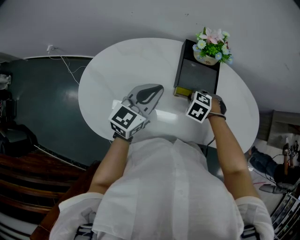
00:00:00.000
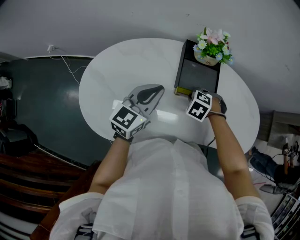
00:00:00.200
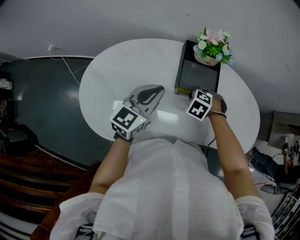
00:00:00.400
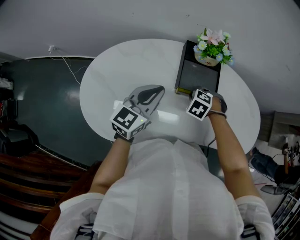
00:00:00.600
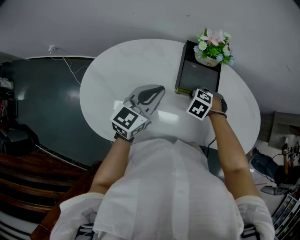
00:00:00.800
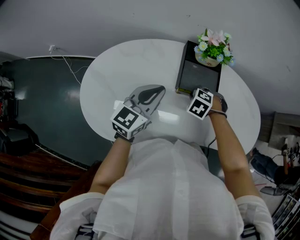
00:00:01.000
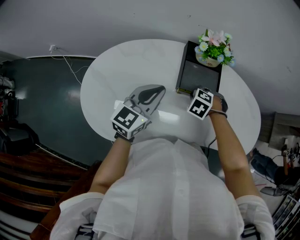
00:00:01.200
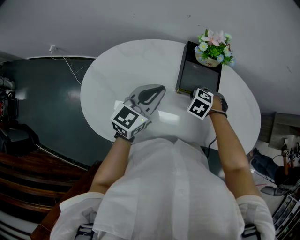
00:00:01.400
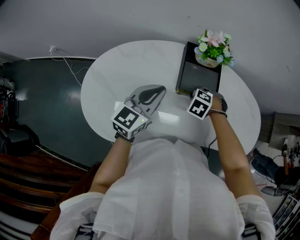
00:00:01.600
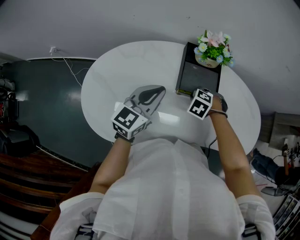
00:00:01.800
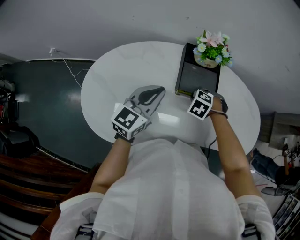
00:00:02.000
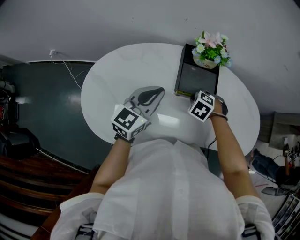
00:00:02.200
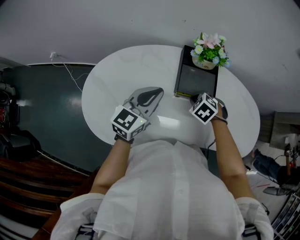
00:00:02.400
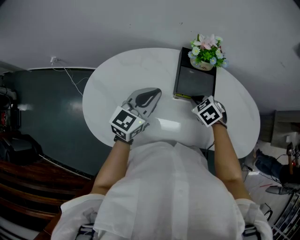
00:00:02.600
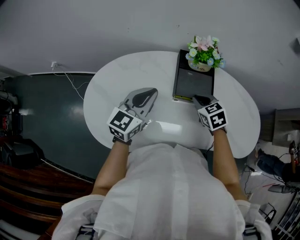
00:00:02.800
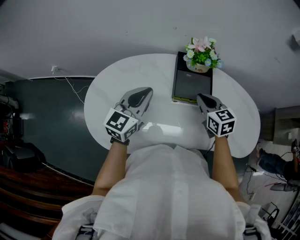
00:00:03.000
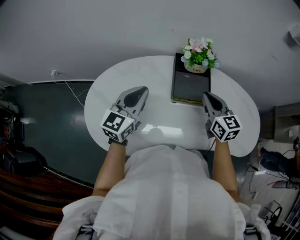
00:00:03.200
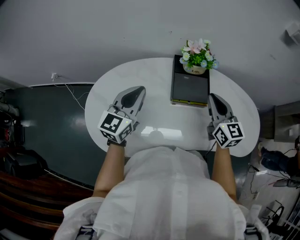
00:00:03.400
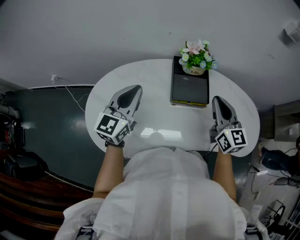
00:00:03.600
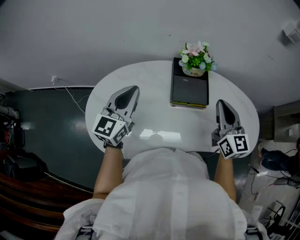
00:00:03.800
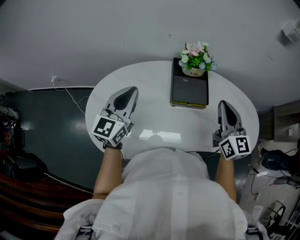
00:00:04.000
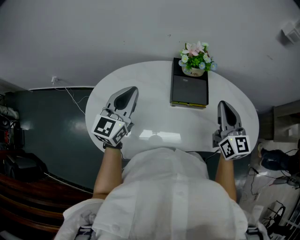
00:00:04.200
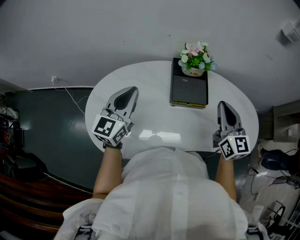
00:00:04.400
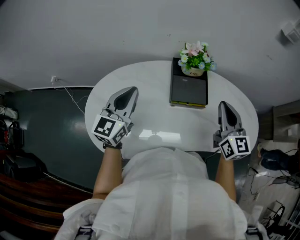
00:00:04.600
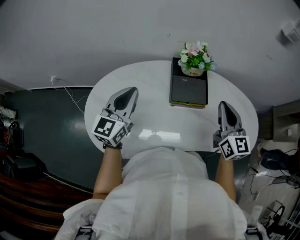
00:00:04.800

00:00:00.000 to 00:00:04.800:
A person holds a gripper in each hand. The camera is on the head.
00:00:00.000 to 00:00:01.600: The grippers stay close to where they were, moving slightly.
00:00:01.600 to 00:00:03.200: The left gripper shifts by about 5 cm, while the right gripper shifts roughly 15 cm upward, and points its fingers about 60 degrees further upward.
00:00:03.200 to 00:00:04.800: The right gripper heads upward and to the right, covering some 10 cm.

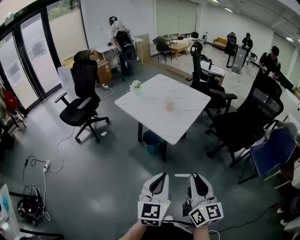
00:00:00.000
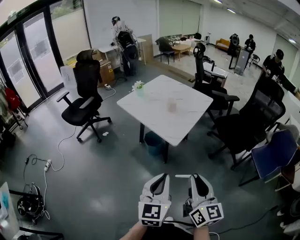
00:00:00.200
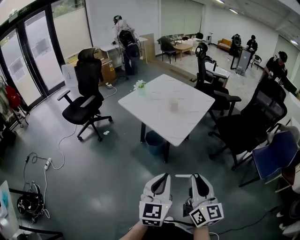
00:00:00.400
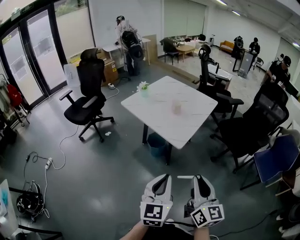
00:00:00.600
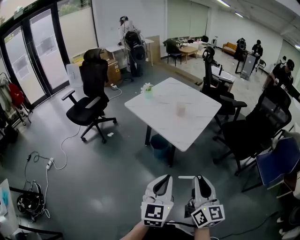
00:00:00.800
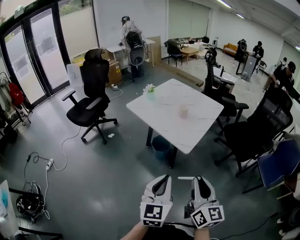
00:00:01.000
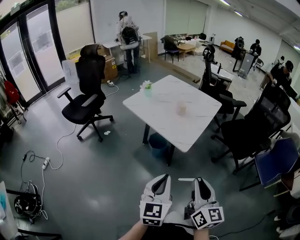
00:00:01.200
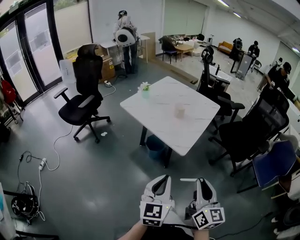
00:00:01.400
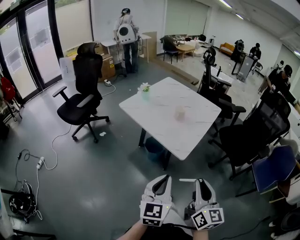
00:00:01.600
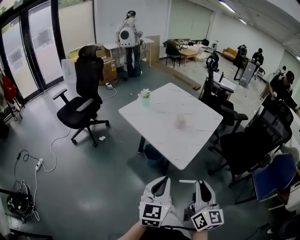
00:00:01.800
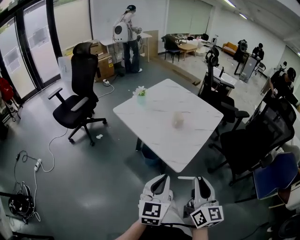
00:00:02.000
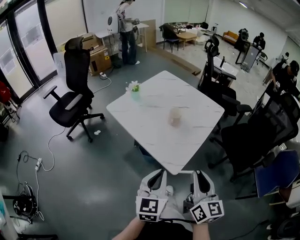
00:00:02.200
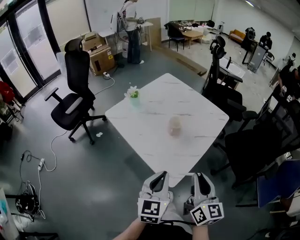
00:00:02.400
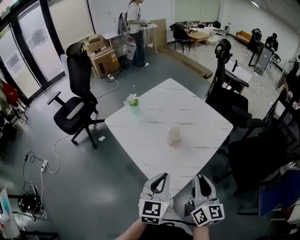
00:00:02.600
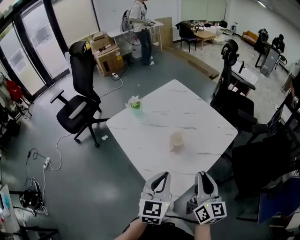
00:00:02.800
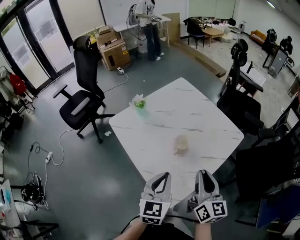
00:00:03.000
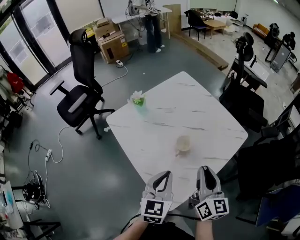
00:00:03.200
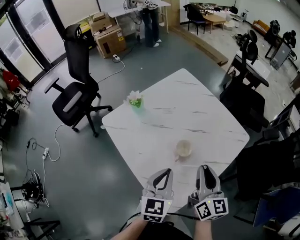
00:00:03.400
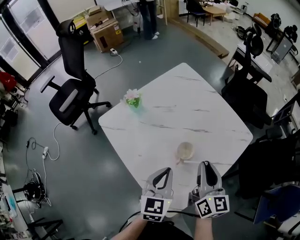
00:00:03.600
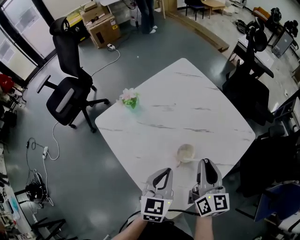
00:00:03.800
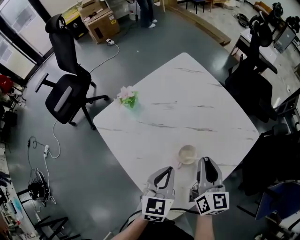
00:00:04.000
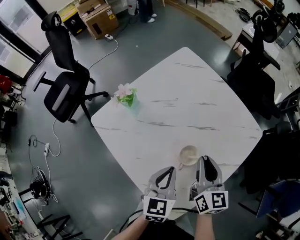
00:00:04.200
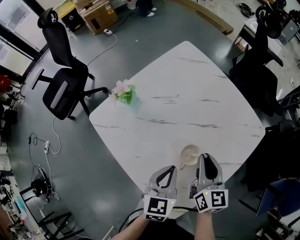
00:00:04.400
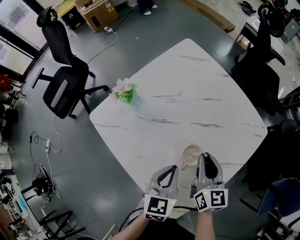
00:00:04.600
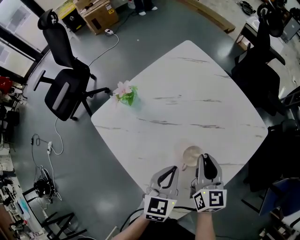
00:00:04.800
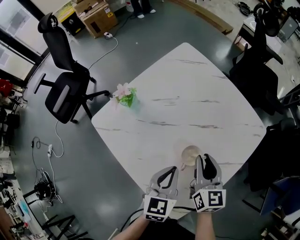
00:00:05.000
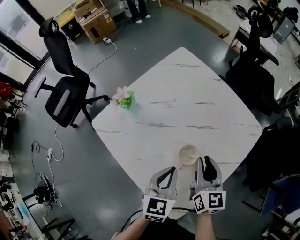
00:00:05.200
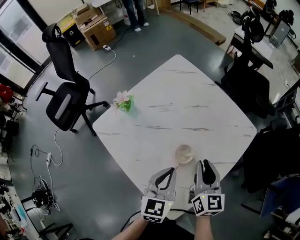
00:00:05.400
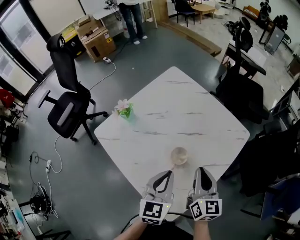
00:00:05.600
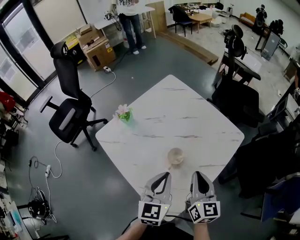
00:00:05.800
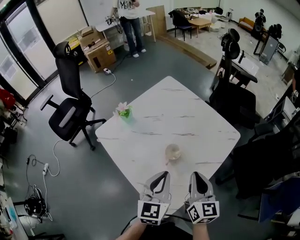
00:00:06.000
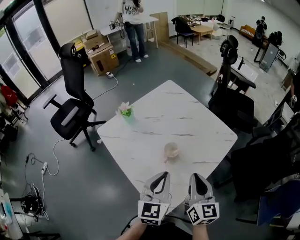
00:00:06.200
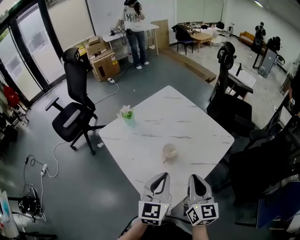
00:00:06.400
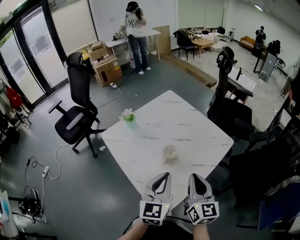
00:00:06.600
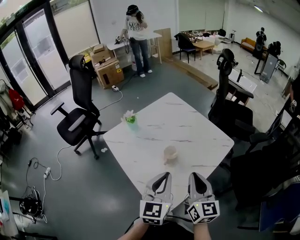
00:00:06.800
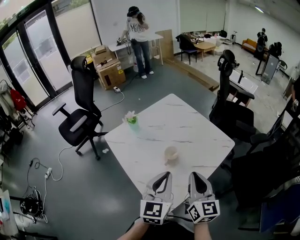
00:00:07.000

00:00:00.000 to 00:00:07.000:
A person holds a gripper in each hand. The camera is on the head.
00:00:00.000 to 00:00:01.400: The right gripper is displaced forward by some 10 cm. The left gripper moves forward and to the left, roughly 10 cm.
00:00:01.400 to 00:00:02.800: The two grippers go roughly 40 cm forward.
00:00:02.800 to 00:00:04.200: The grippers both shift forward and downward by about 25 cm.
00:00:04.200 to 00:00:05.600: The right gripper heads backward, covering some 5 cm. The left gripper travels upward by approximately 5 cm.
00:00:05.600 to 00:00:07.000: Both grippers move backward and upward, approximately 15 cm.

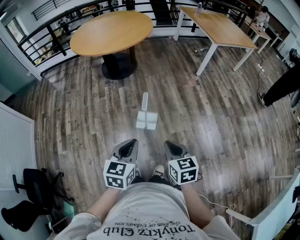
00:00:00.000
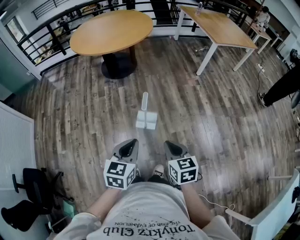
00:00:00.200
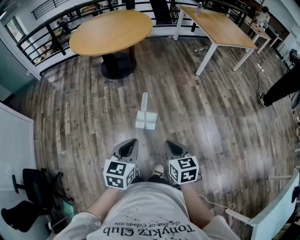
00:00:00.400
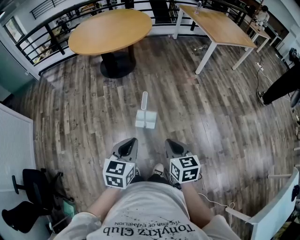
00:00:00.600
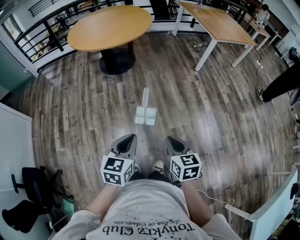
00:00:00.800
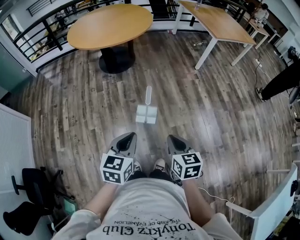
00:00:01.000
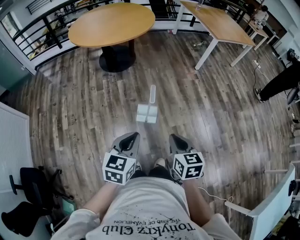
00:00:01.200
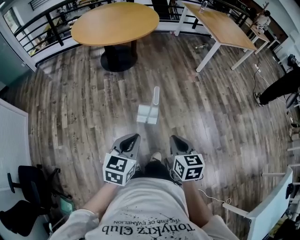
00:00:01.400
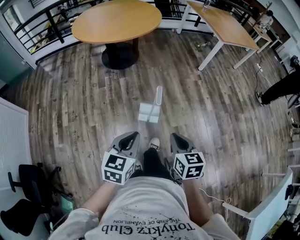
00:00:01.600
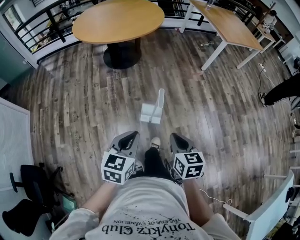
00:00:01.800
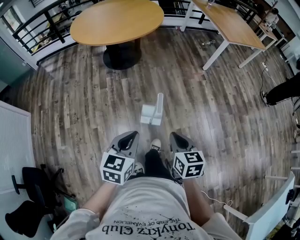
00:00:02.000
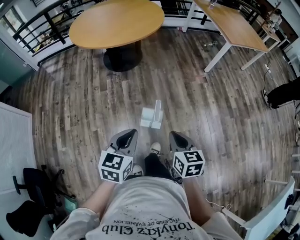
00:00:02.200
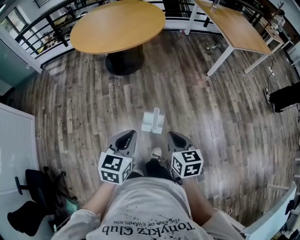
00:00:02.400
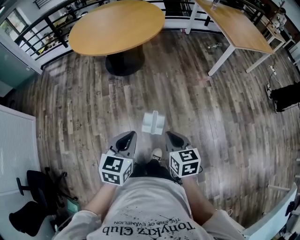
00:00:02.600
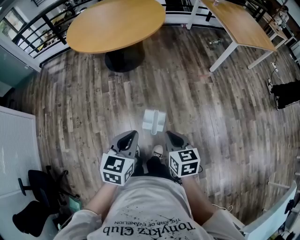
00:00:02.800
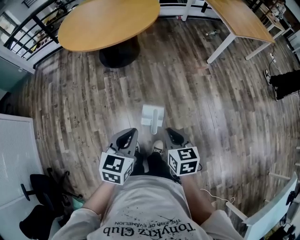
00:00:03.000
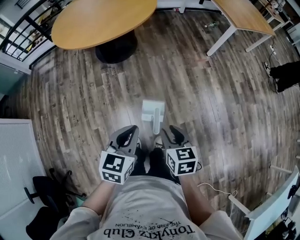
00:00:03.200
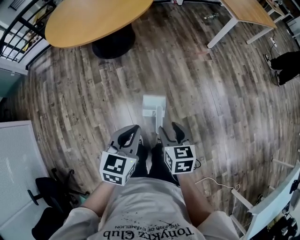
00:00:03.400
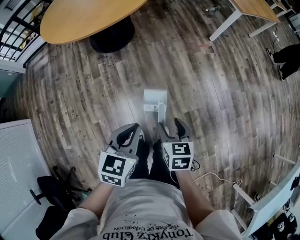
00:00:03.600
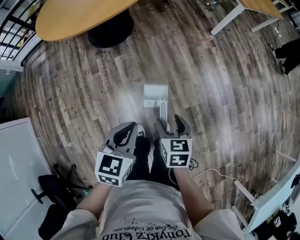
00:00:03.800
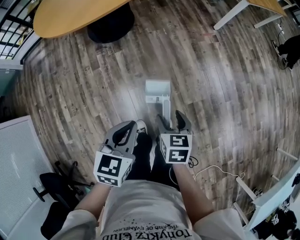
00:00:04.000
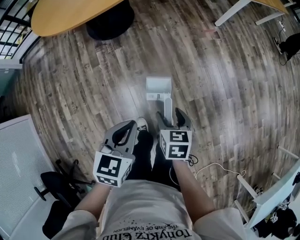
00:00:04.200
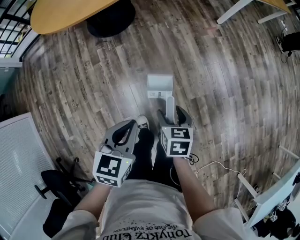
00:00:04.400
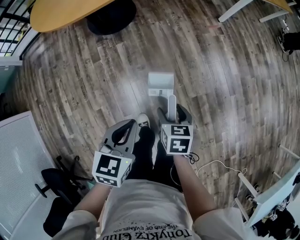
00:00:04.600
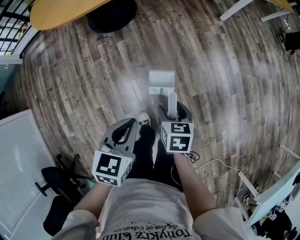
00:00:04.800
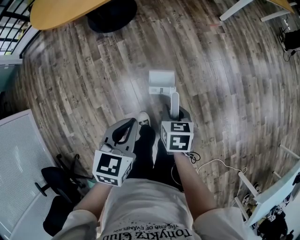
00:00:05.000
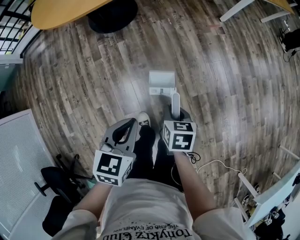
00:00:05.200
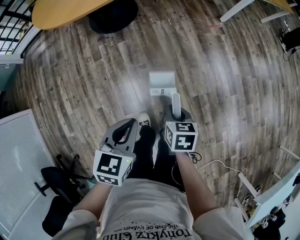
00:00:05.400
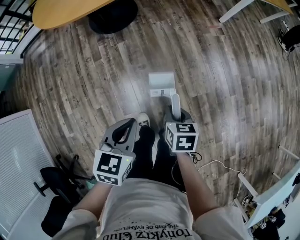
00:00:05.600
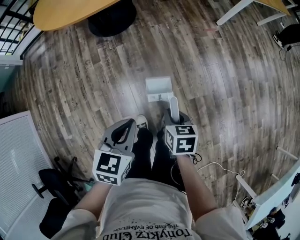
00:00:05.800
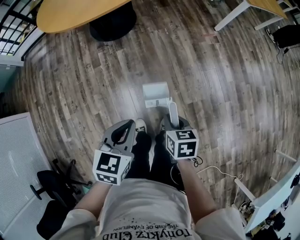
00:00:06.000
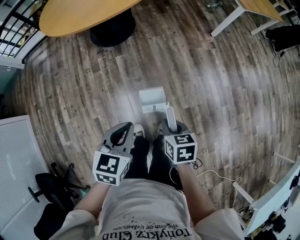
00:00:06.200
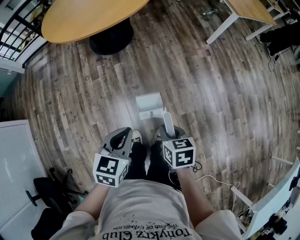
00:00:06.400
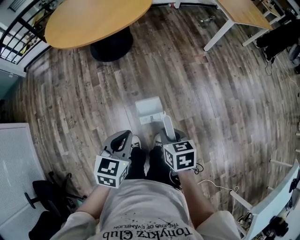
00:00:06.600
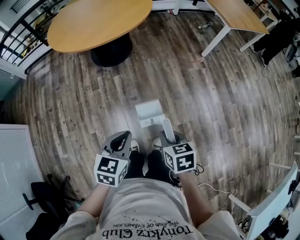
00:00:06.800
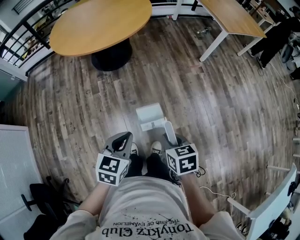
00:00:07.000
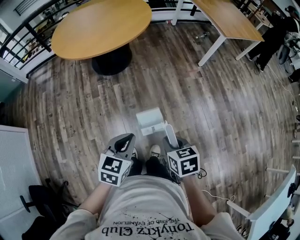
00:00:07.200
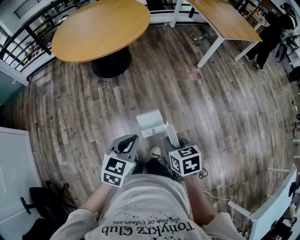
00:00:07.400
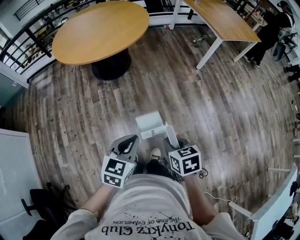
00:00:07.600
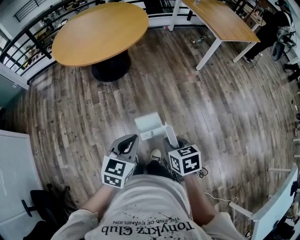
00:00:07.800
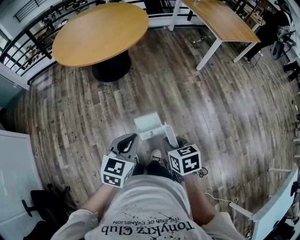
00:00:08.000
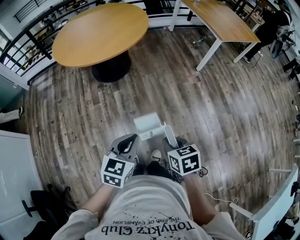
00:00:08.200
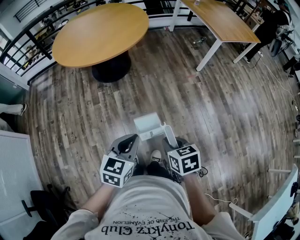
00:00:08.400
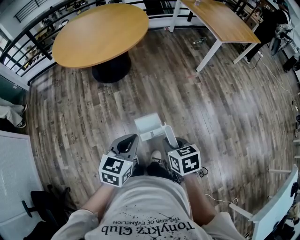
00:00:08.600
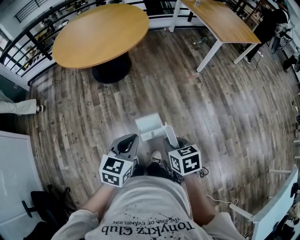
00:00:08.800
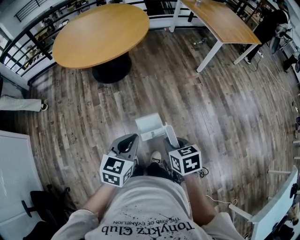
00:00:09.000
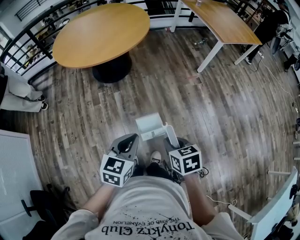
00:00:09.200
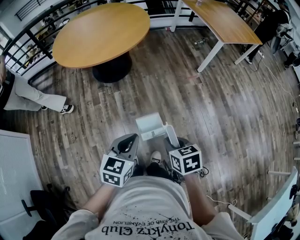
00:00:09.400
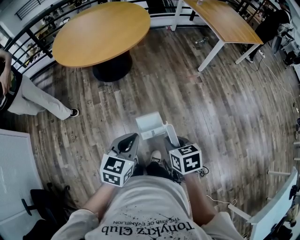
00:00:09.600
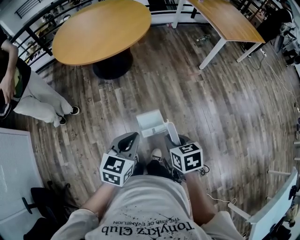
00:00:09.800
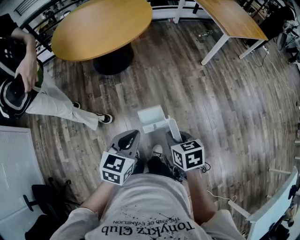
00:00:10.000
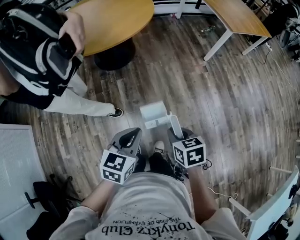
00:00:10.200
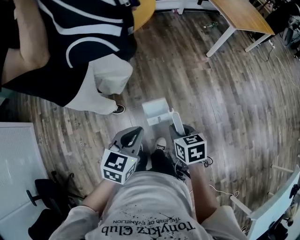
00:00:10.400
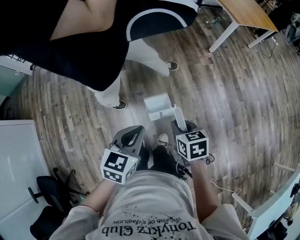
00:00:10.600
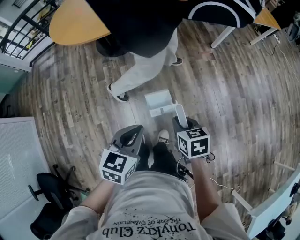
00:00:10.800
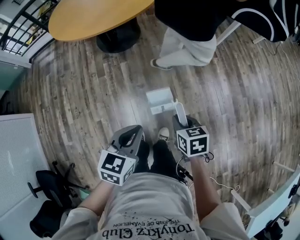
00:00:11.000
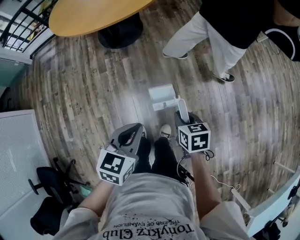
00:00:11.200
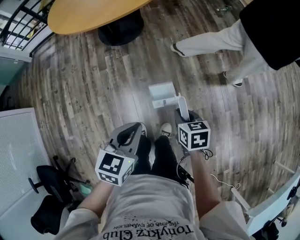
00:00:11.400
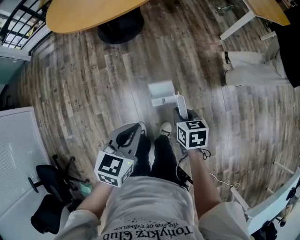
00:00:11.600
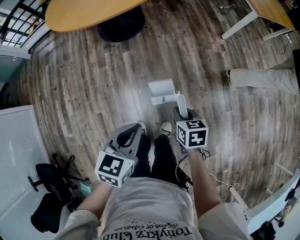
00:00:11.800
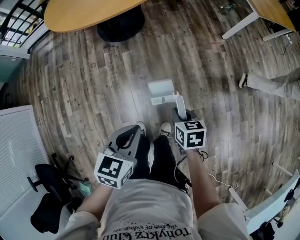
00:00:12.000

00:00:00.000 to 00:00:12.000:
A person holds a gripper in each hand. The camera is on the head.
00:00:00.000 to 00:00:01.600: The grippers both shift to the left by about 10 cm.
00:00:01.600 to 00:00:03.000: Both grippers move forward, approximately 20 cm.
00:00:03.000 to 00:00:04.400: The left gripper moves downward, about 10 cm. The right gripper moves downward, about 15 cm, and opens up.
00:00:04.400 to 00:00:06.000: The right gripper closes up.
00:00:06.000 to 00:00:07.600: The left gripper travels upward by approximately 10 cm, while the right gripper travels upward by roughly 15 cm.
00:00:07.600 to 00:00:09.000: The grippers move only a little.
00:00:09.000 to 00:00:10.400: The right gripper changes place by some 5 cm.
00:00:10.400 to 00:00:12.000: The right gripper moves downward and forward, some 15 cm. Meanwhile the left gripper shifts about 5 cm downward.
